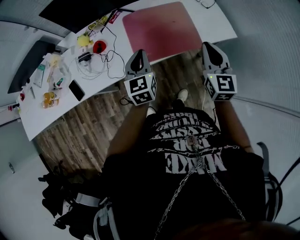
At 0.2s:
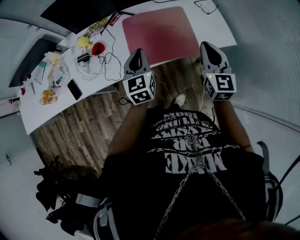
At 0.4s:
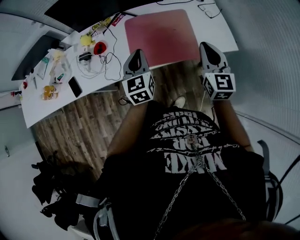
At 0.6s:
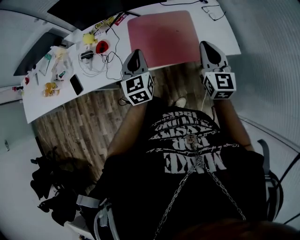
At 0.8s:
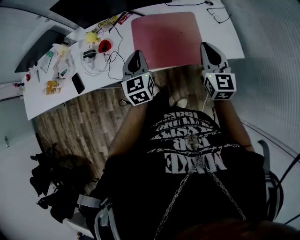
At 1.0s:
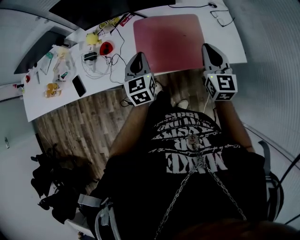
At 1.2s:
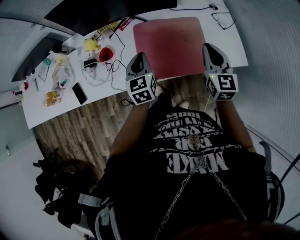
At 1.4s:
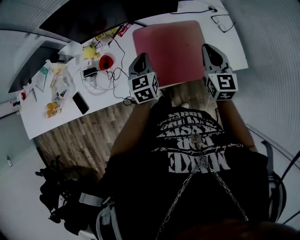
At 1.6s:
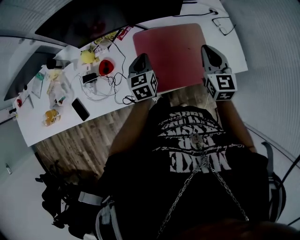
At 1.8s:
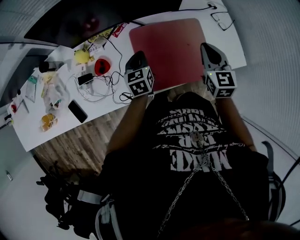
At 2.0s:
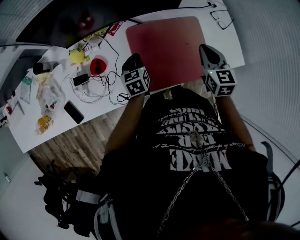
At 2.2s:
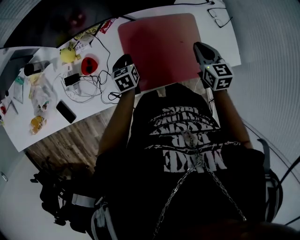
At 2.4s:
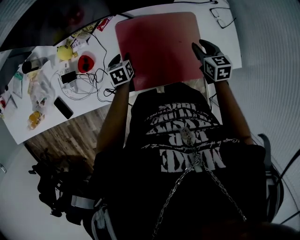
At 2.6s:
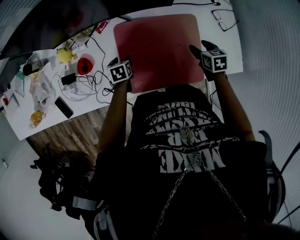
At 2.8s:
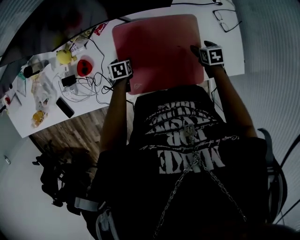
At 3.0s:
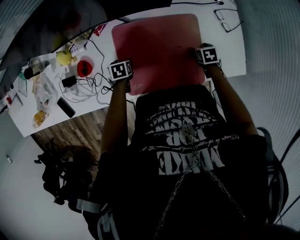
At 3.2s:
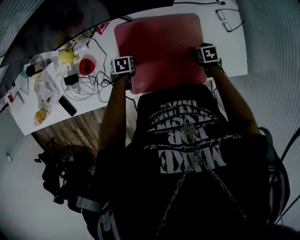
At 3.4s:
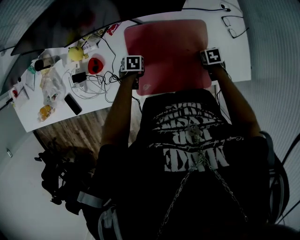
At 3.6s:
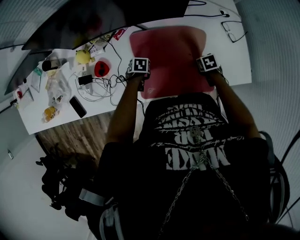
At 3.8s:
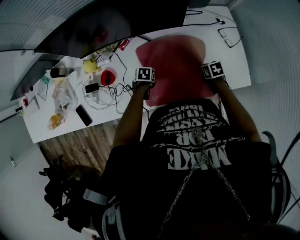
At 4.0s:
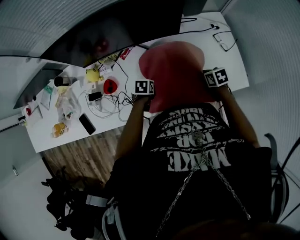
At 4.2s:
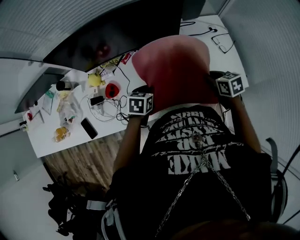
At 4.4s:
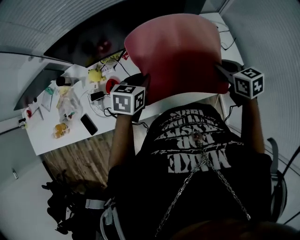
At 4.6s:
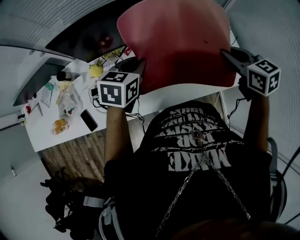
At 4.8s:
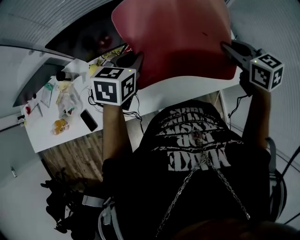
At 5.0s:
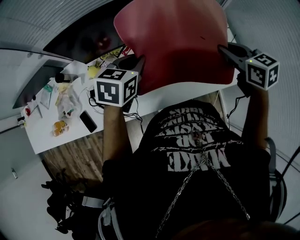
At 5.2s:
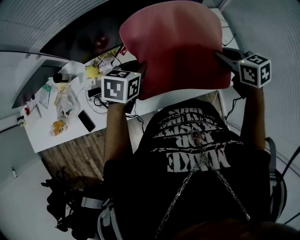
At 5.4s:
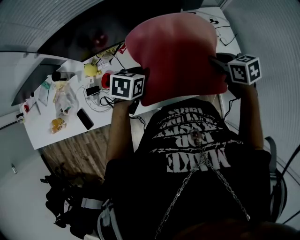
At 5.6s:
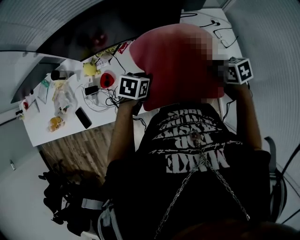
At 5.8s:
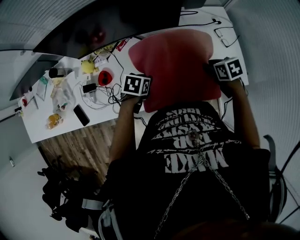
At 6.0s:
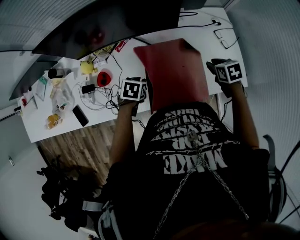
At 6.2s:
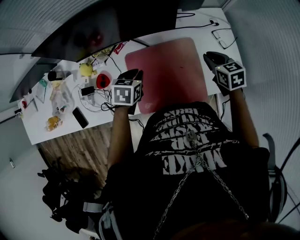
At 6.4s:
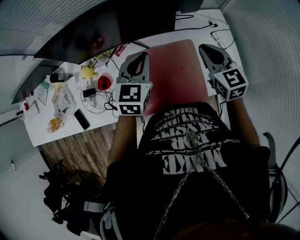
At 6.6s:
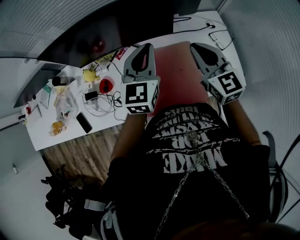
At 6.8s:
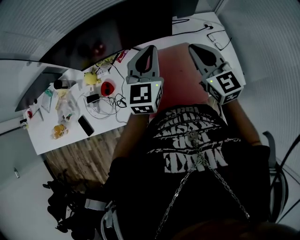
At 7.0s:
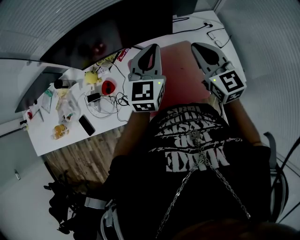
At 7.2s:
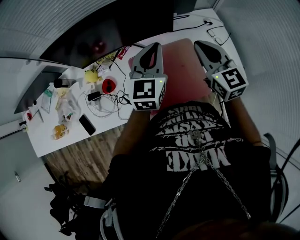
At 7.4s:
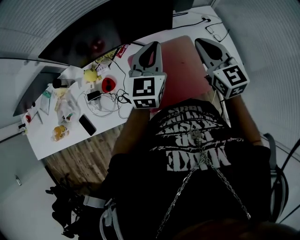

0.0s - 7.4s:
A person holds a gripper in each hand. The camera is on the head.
0.0s - 1.4s: The grippers both shift forward by approximately 20 cm.
1.4s - 3.0s: Both grippers travel together downward, approximately 30 cm. The right gripper points its fingers approximately 60 degrees further downward, and opens its fingers. Meanwhile the left gripper tilts its fingers about 50 degrees downward, and opens its fingers.
3.0s - 4.4s: Both grippers move upward, some 35 cm. The right gripper tilts its fingers roughly 30 degrees upward, and closes up, while the left gripper points its fingers approximately 30 degrees further upward, and closes up.
4.4s - 6.0s: The grippers both shift downward by approximately 15 cm. The right gripper changes its angle by some 20 degrees, while the left gripper rotates approximately 30 degrees.
6.0s - 7.4s: The left gripper shifts about 25 cm upward, and tilts its fingers roughly 60 degrees upward. Meanwhile the right gripper heads upward and to the left, covering about 25 cm, angles its fingers upward, by roughly 50 degrees, and closes its fingers.

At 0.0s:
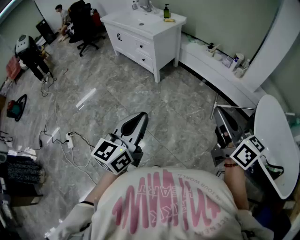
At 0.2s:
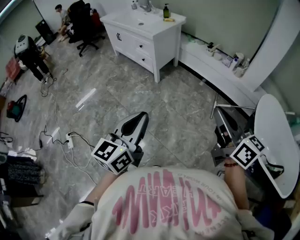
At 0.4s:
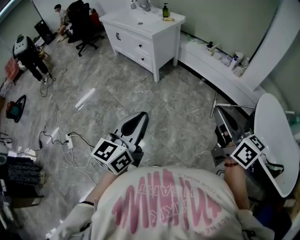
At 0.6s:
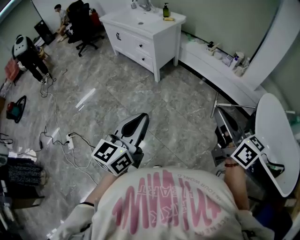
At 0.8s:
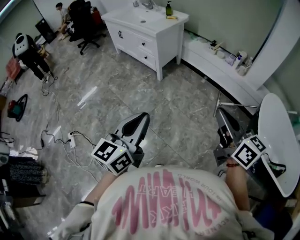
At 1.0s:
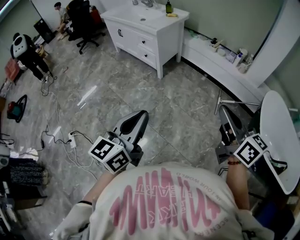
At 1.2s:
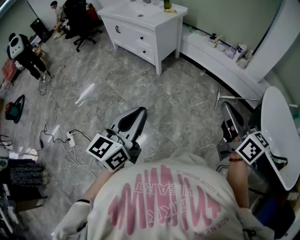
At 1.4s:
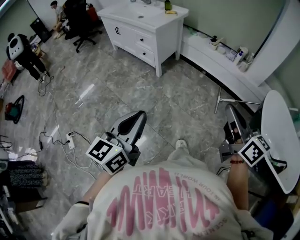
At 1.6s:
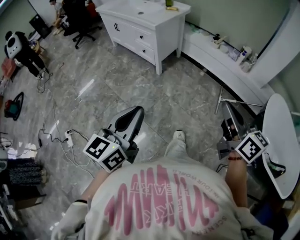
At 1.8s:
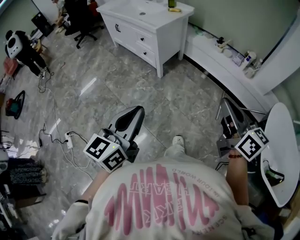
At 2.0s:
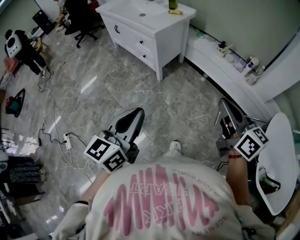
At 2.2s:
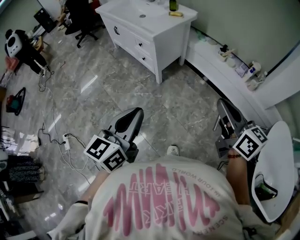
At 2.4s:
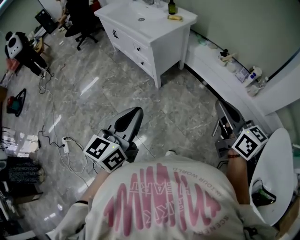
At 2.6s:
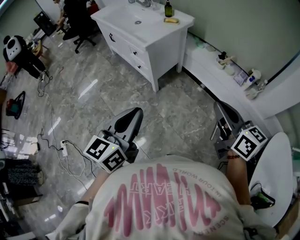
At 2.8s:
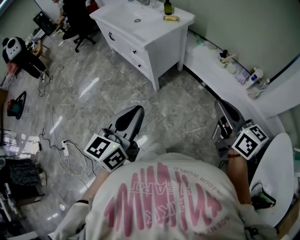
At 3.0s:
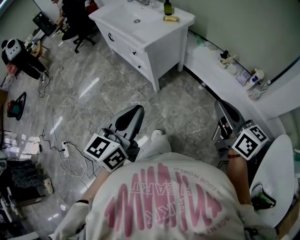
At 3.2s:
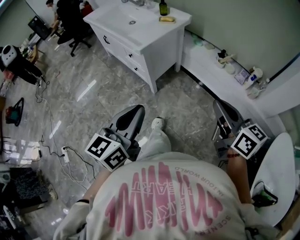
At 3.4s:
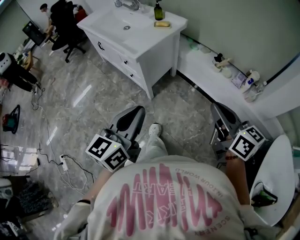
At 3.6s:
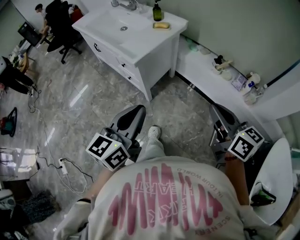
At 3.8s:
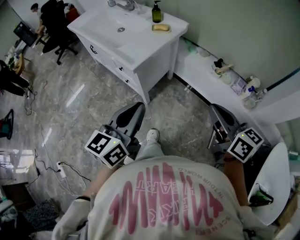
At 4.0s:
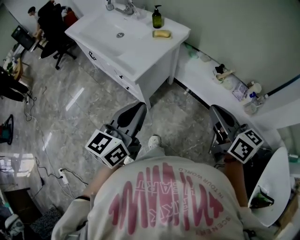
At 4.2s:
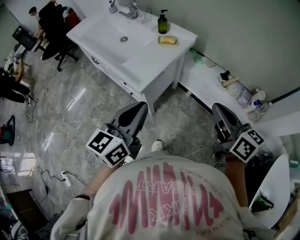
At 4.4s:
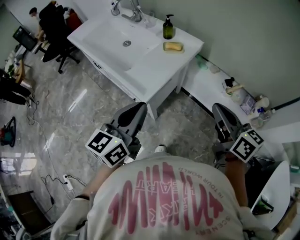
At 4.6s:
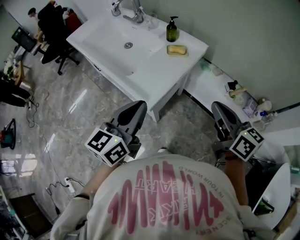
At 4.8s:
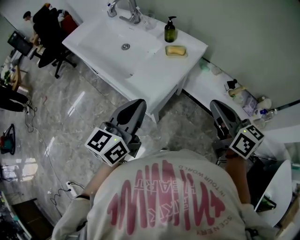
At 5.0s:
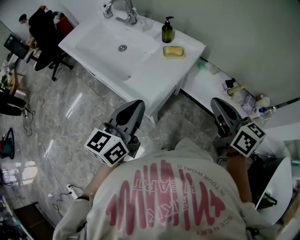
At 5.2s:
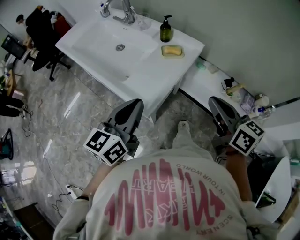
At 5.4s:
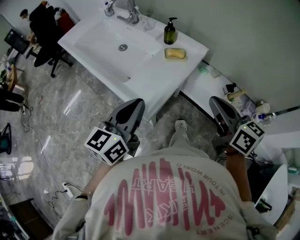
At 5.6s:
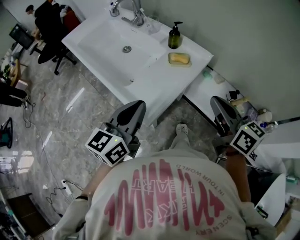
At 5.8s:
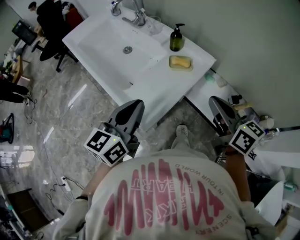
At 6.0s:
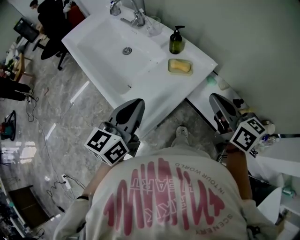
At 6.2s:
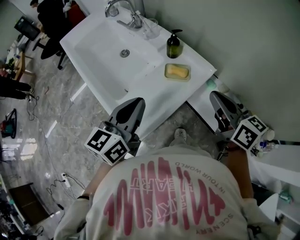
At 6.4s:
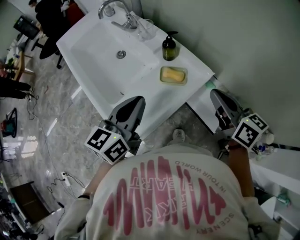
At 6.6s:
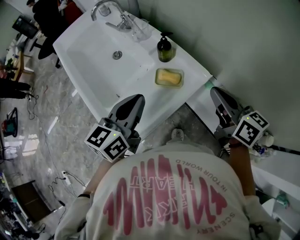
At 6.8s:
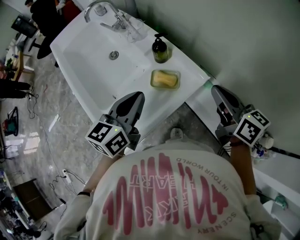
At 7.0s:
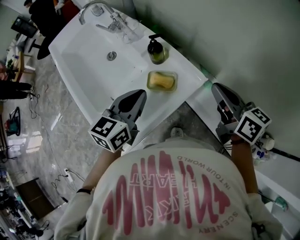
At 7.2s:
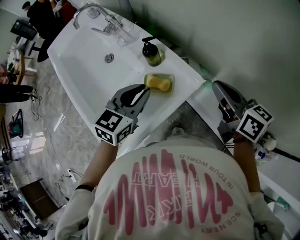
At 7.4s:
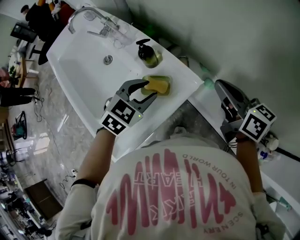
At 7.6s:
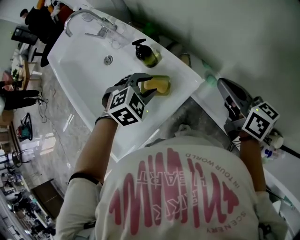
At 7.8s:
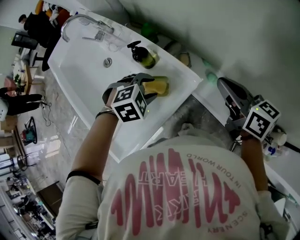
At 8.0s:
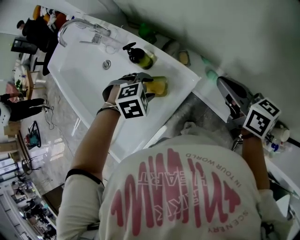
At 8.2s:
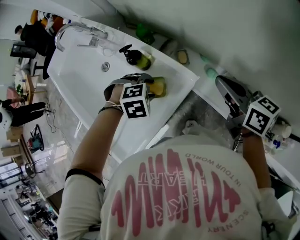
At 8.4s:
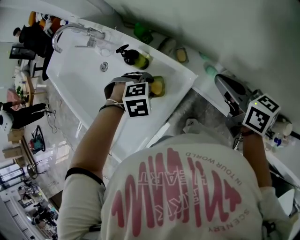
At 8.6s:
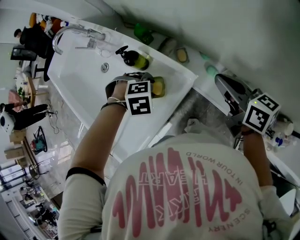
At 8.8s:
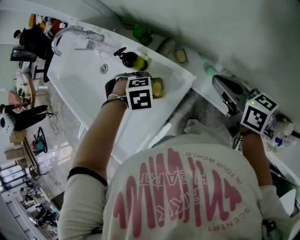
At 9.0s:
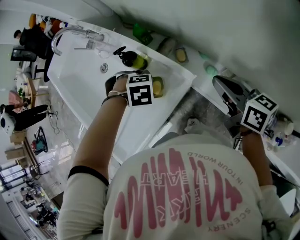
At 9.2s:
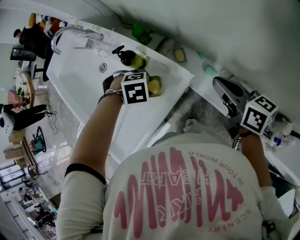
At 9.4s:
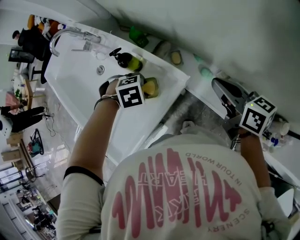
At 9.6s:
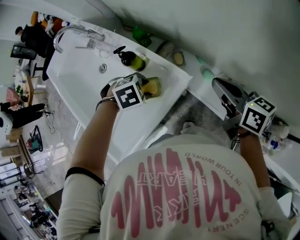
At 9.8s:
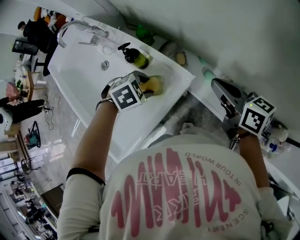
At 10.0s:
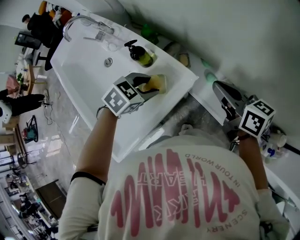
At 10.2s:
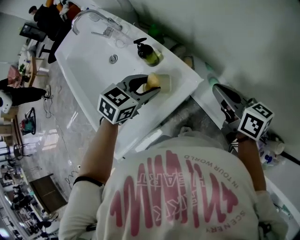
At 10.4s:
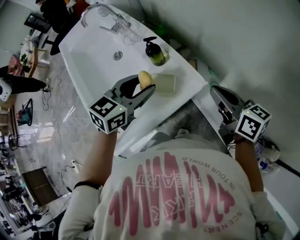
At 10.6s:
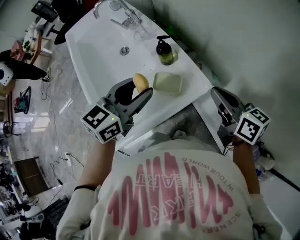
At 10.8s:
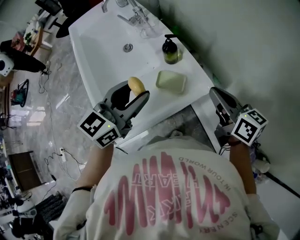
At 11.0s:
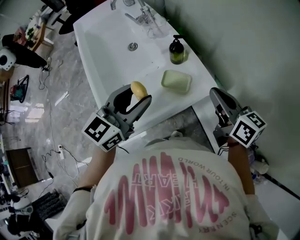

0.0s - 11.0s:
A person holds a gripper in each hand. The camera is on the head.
0.0s - 1.6s: The right gripper moves forward and downward, roughly 10 cm. The left gripper shifts about 5 cm forward.
1.6s - 3.2s: The grippers both shift forward by approximately 30 cm.
3.2s - 4.8s: Both grippers move forward, roughly 35 cm.
4.8s - 6.2s: The two grippers go approximately 20 cm forward.
6.2s - 7.8s: The left gripper goes about 30 cm downward, forward and to the right, angles its fingers downward, by about 60 degrees, and opens its fingers, while the right gripper heads to the right, forward and downward, covering about 20 cm.
7.8s - 9.4s: The left gripper turns by some 20 degrees.
9.4s - 11.0s: The left gripper travels upward by approximately 20 cm, and tips its fingers upward by about 80 degrees; the right gripper ends up some 15 cm from where it was.

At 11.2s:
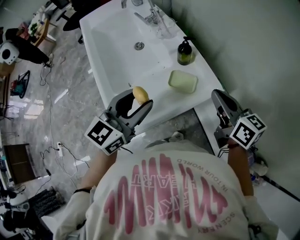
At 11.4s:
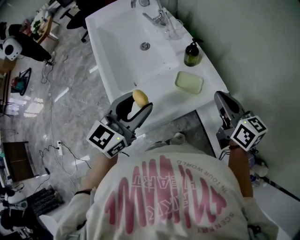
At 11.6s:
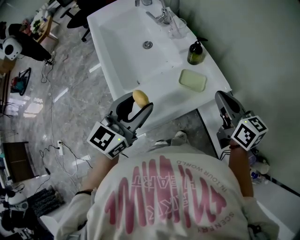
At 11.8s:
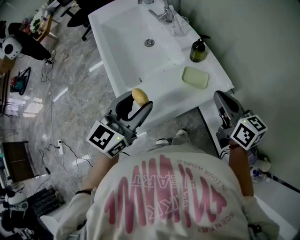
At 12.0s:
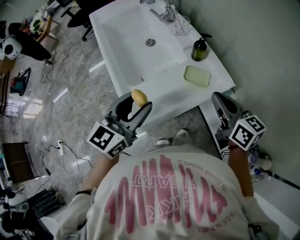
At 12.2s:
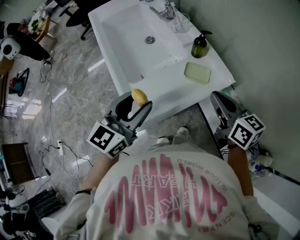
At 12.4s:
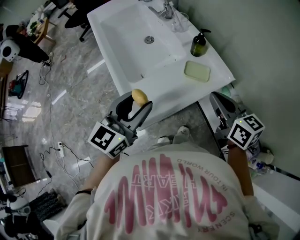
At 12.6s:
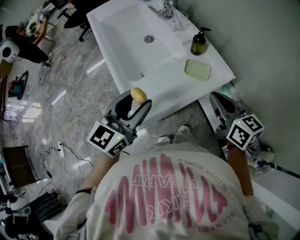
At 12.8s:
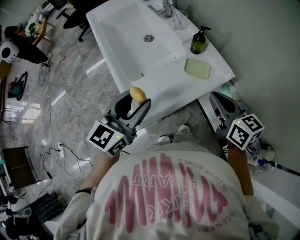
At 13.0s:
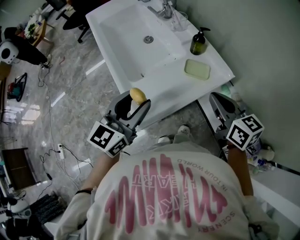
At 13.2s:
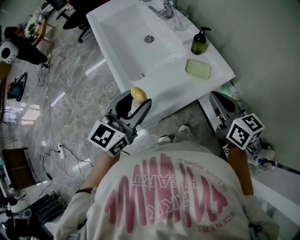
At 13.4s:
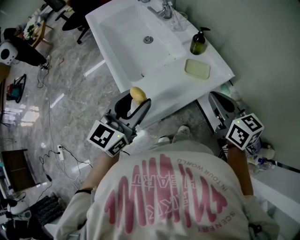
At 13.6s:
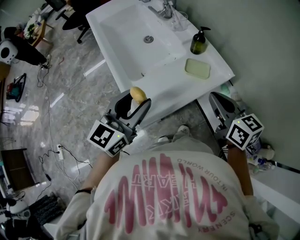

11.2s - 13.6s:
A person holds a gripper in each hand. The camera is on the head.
11.2s - 12.4s: Both grippers move to the left and backward, some 10 cm.
12.4s - 13.6s: The grippers move only a little.

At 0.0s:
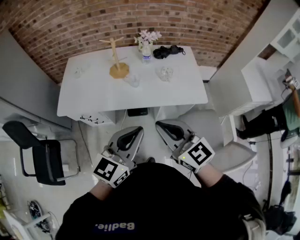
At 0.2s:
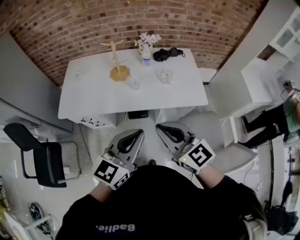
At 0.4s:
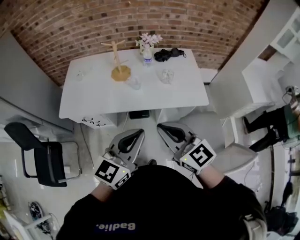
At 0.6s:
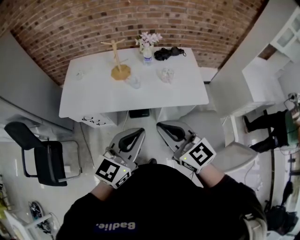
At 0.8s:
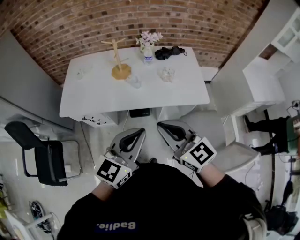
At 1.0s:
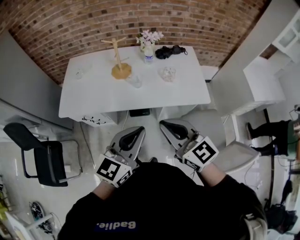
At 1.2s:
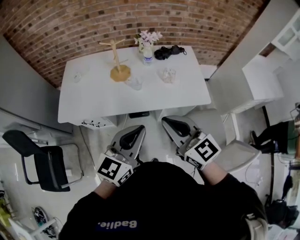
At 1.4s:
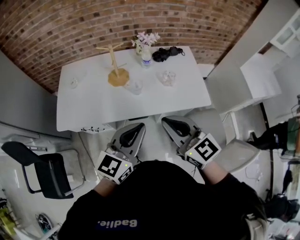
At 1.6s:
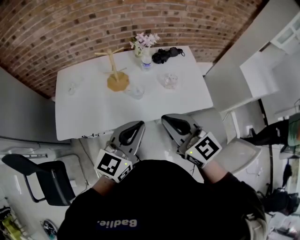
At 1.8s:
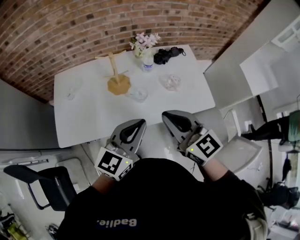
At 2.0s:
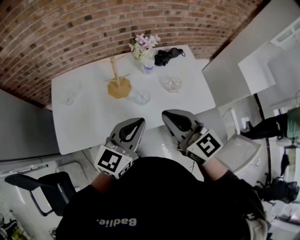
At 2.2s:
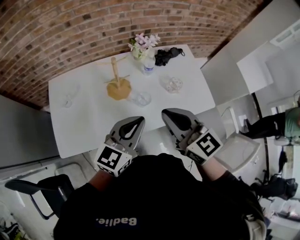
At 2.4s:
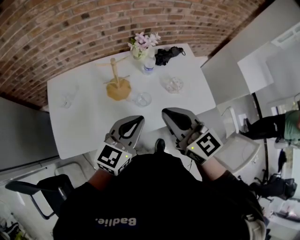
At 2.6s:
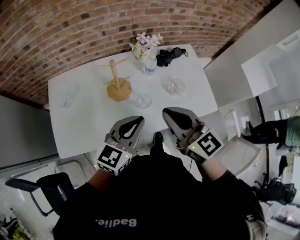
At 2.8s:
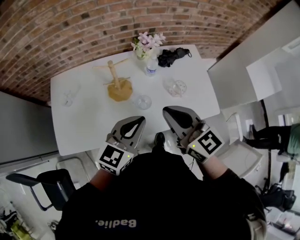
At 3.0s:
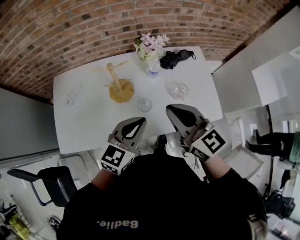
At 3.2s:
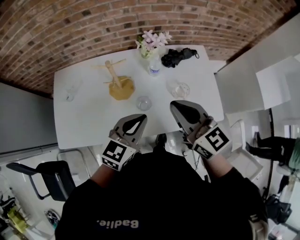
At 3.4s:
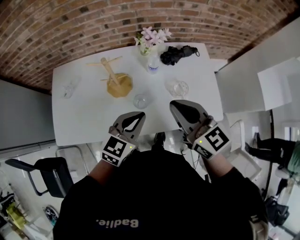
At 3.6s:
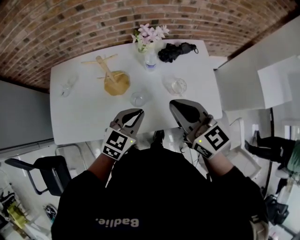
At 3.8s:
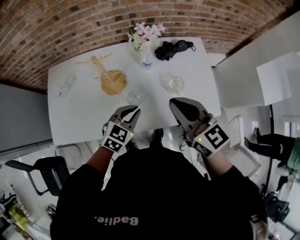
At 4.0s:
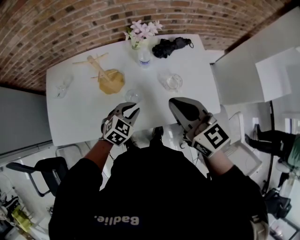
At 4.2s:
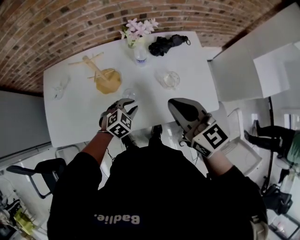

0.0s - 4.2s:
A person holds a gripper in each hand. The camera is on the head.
0.0s - 1.4s: Both grippers move forward, some 10 cm.
1.4s - 2.8s: Both grippers travel together forward, approximately 20 cm.
2.8s - 4.2s: The right gripper travels to the right by approximately 10 cm; the left gripper goes approximately 25 cm downward, tilts its fingers roughly 40 degrees downward, and opens up.
